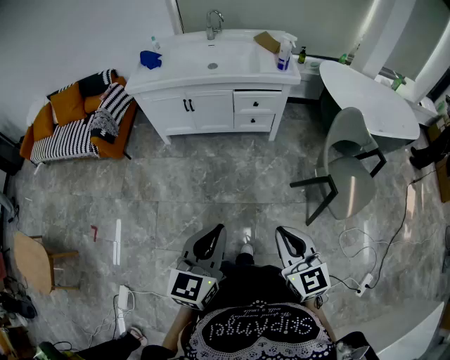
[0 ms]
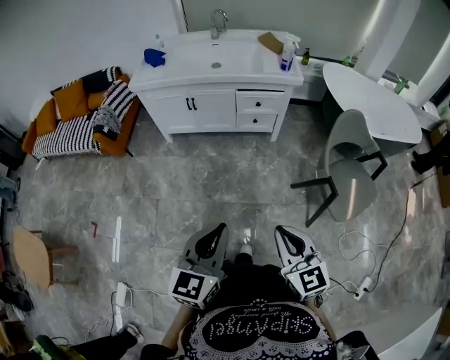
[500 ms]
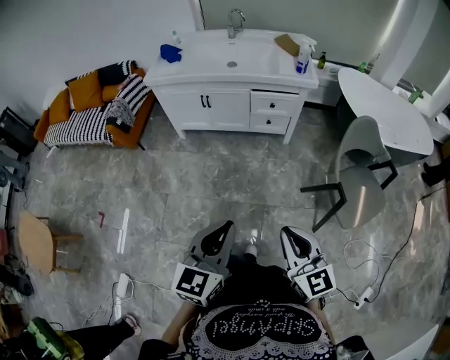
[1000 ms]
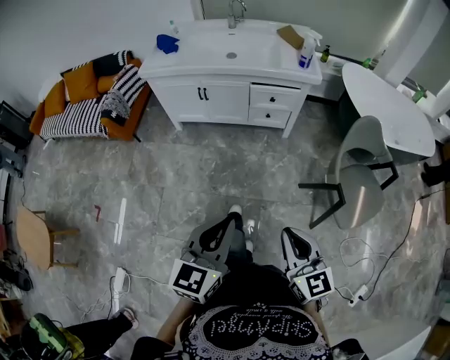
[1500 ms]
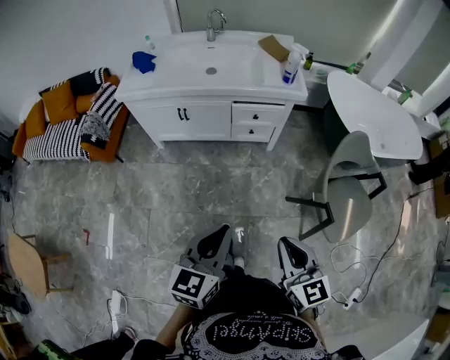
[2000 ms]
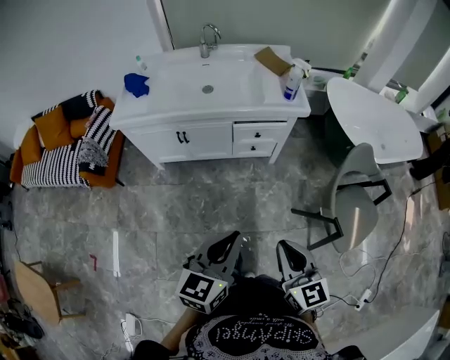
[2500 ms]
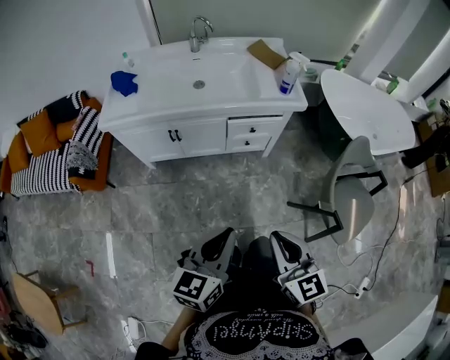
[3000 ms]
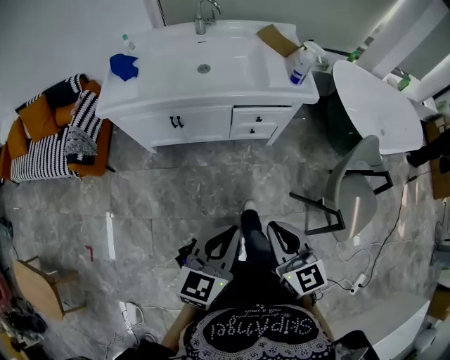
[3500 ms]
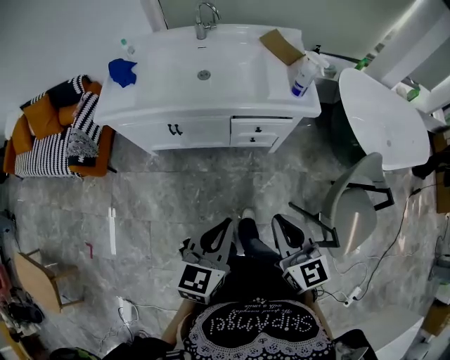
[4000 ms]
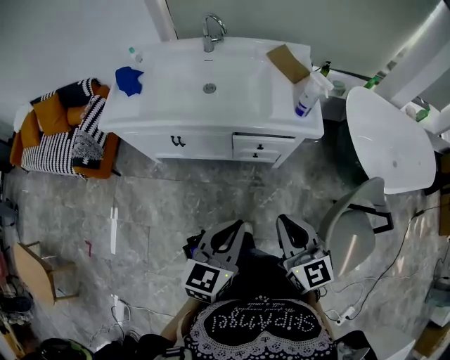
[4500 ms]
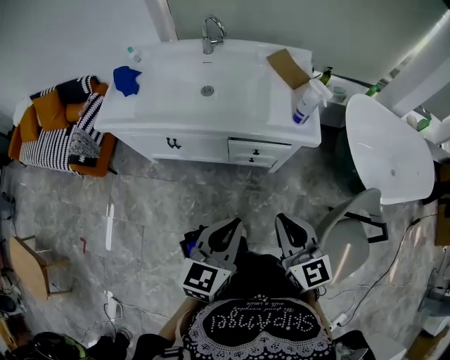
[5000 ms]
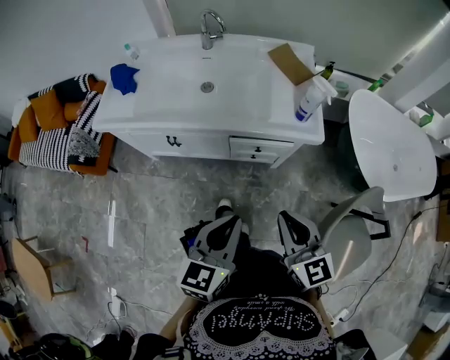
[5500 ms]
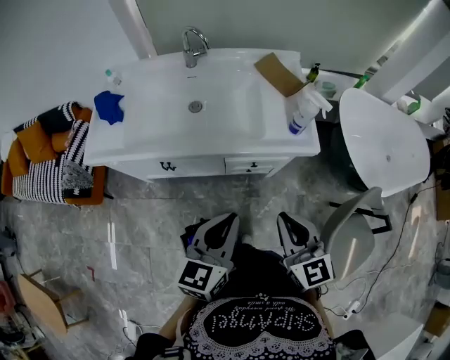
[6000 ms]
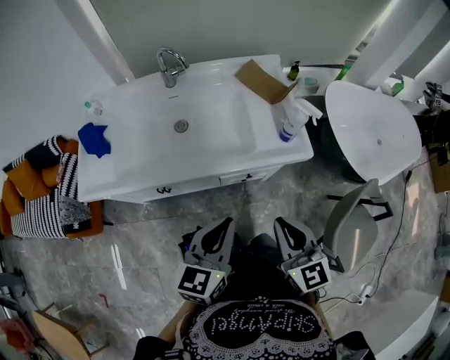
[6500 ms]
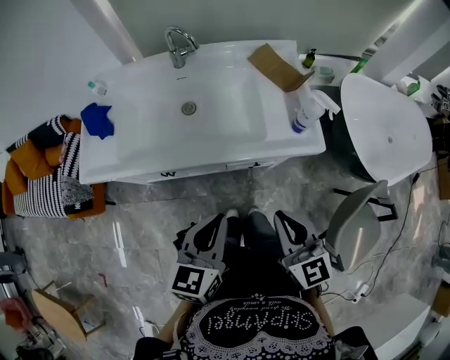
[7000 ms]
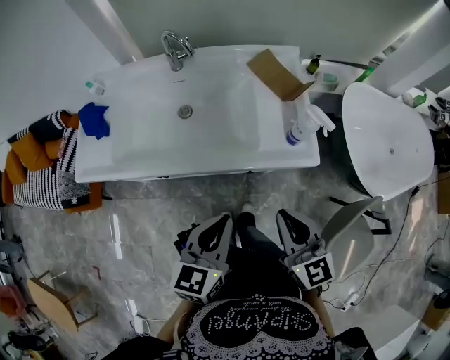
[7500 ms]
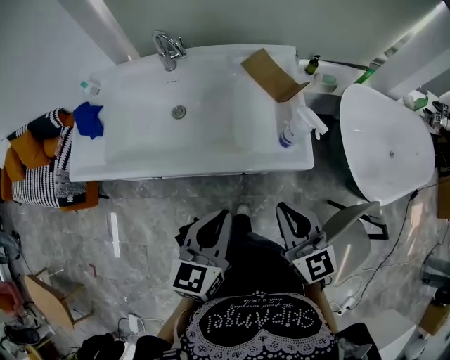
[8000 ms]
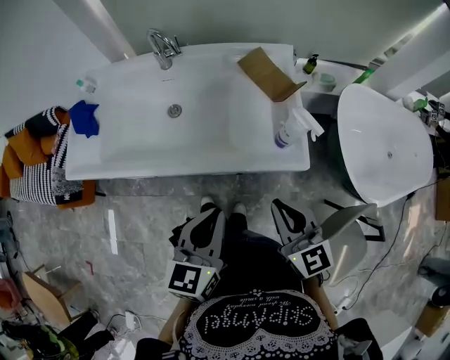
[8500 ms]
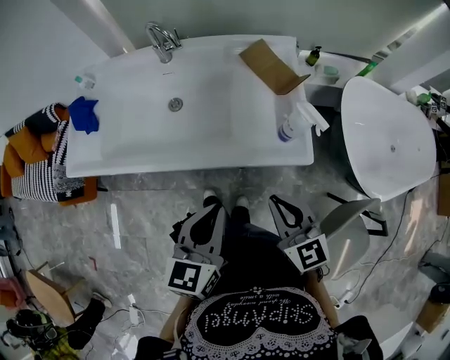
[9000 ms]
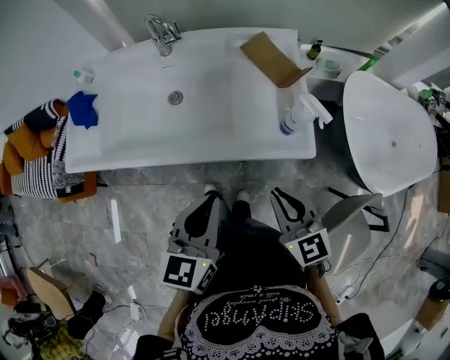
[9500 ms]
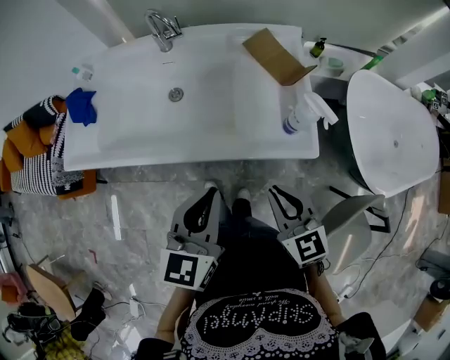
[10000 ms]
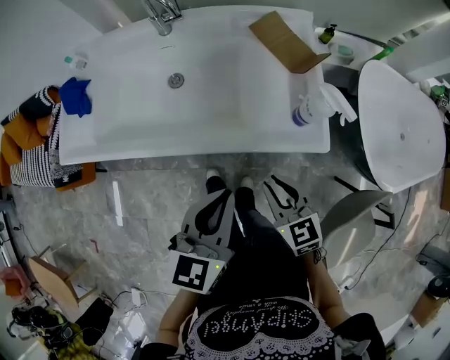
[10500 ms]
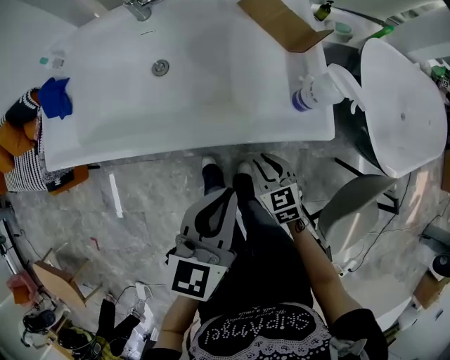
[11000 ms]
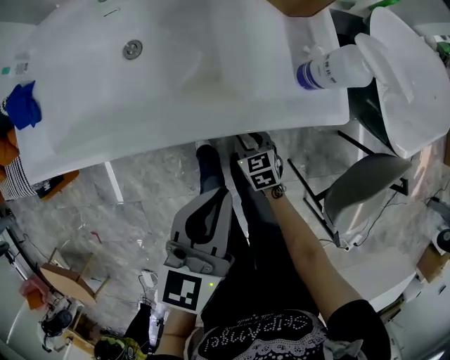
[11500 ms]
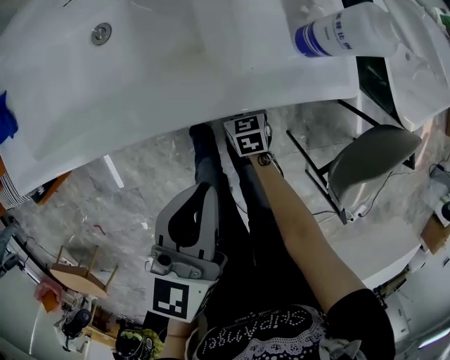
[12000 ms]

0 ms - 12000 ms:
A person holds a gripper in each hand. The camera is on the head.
0 ms - 2000 ms: Both grippers move forward, approximately 15 cm.
2000 ms - 4000 ms: The grippers both shift forward by about 25 cm.
4000 ms - 6000 ms: Both grippers travel together forward, some 20 cm.
6000 ms - 8000 ms: The grippers both shift forward by approximately 10 cm.
8000 ms - 10000 ms: The right gripper shifts some 5 cm downward.
10000 ms - 12000 ms: The right gripper travels downward by some 40 cm, rotates approximately 40 degrees, and opens its fingers; the left gripper moves downward, about 15 cm.

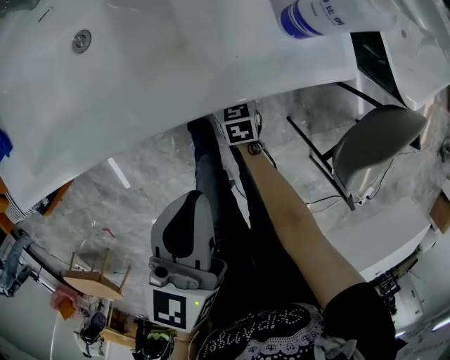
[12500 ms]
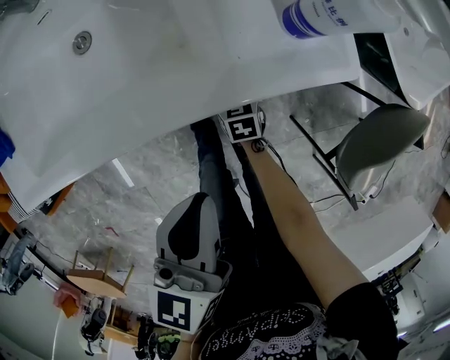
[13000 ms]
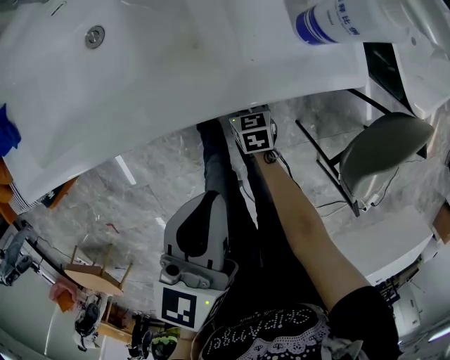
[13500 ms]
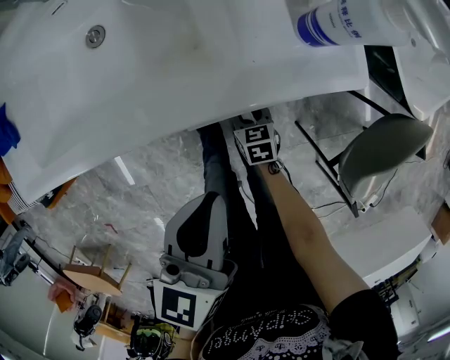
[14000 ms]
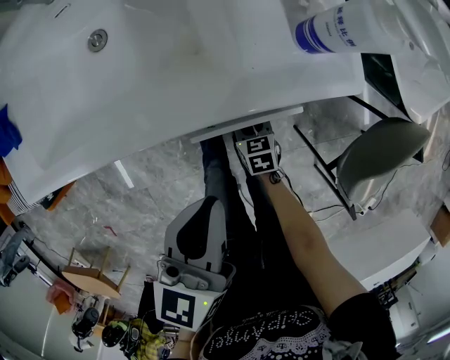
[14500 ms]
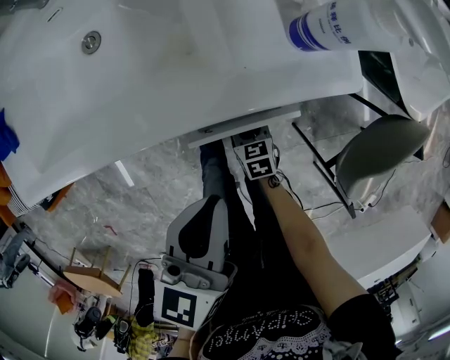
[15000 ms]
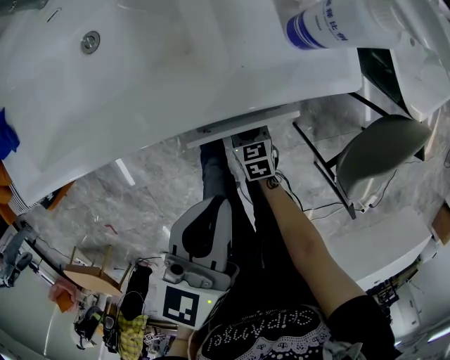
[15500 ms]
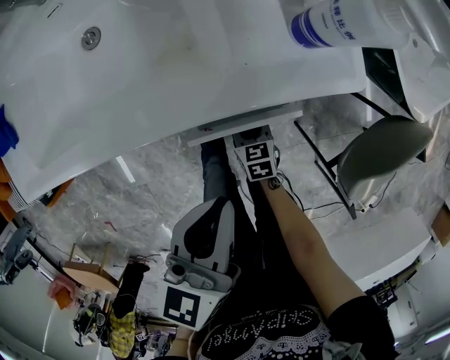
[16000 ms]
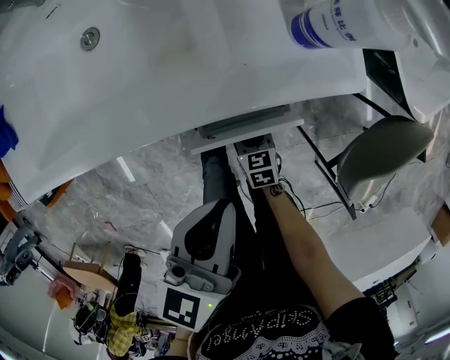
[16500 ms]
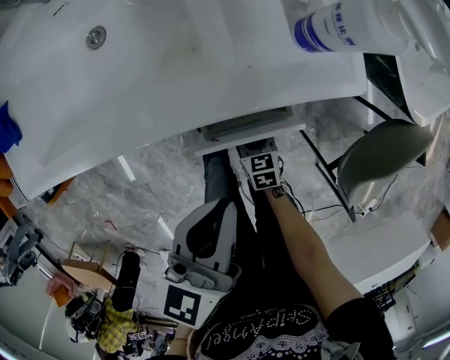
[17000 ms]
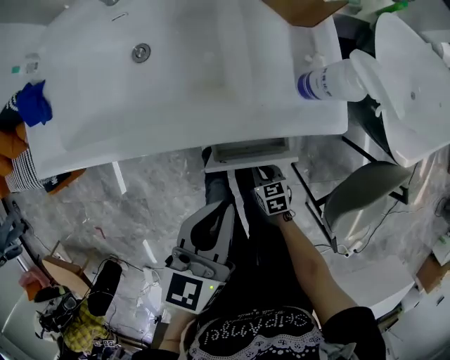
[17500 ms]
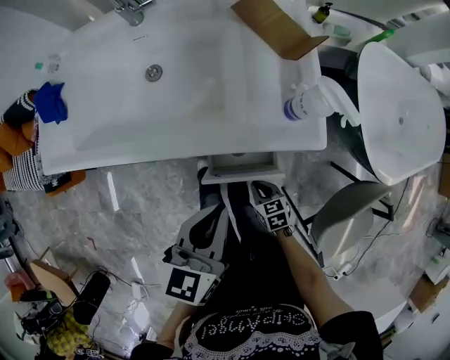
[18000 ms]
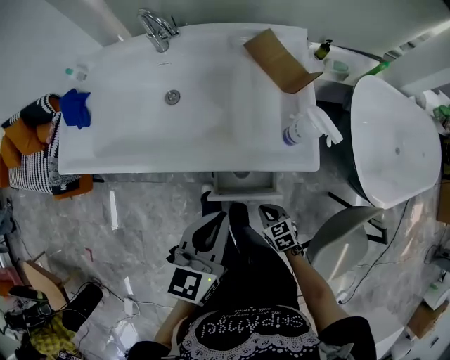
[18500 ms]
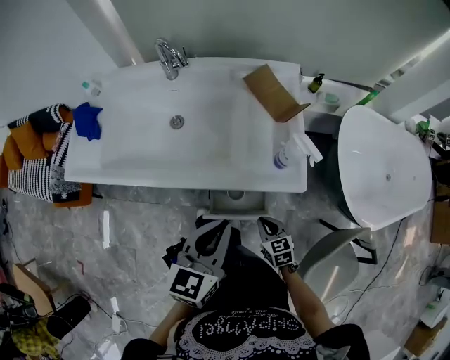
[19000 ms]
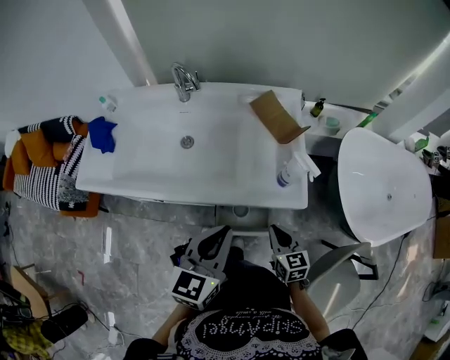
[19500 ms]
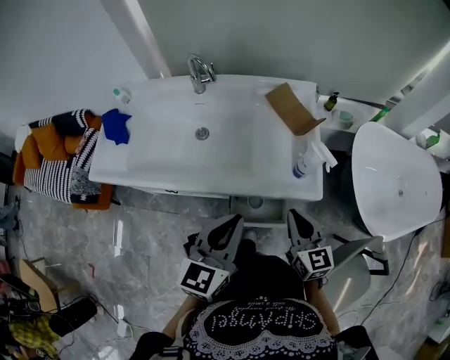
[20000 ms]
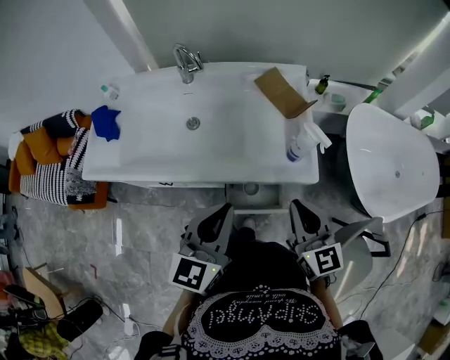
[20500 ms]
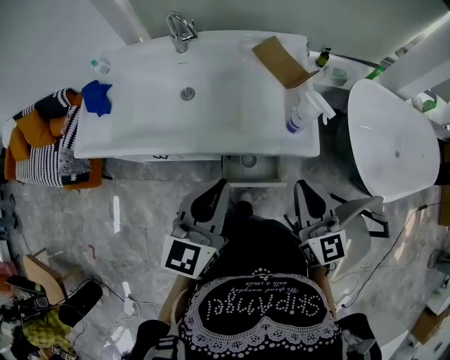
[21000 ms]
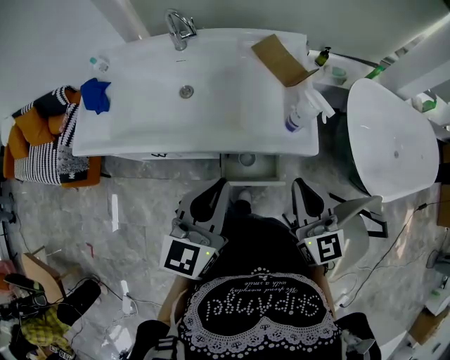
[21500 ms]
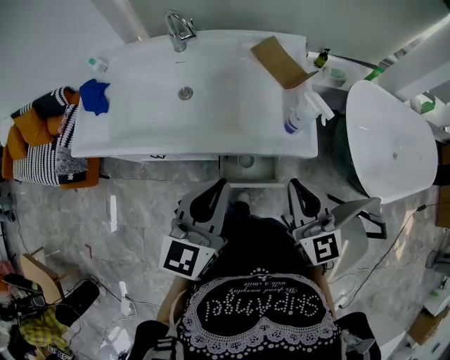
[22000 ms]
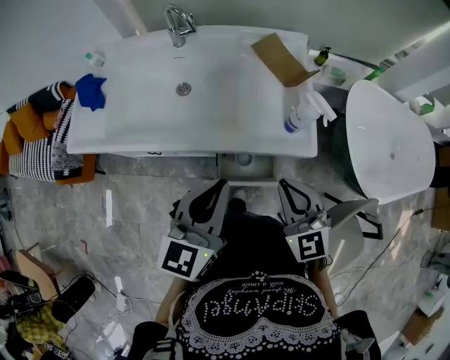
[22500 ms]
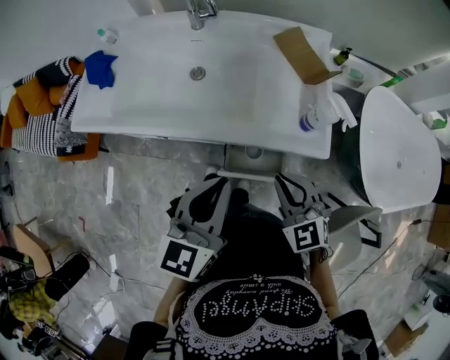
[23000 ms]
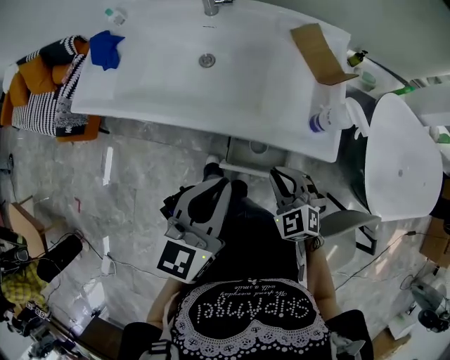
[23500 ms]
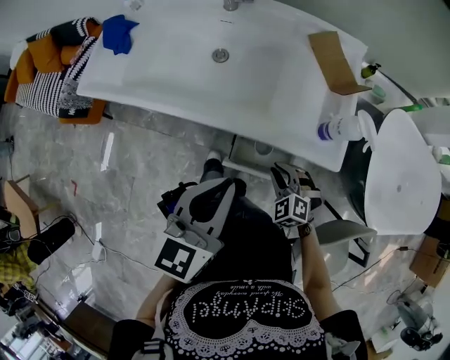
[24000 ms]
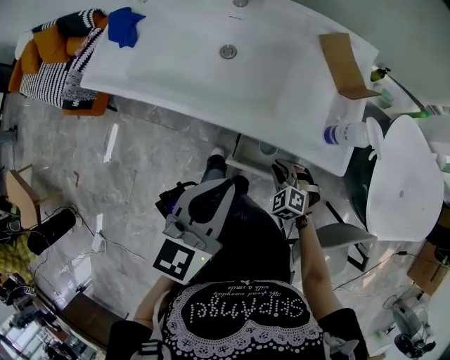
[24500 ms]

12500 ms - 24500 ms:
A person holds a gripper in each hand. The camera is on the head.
12500 ms - 14500 ms: The right gripper travels backward by roughly 10 cm.
14500 ms - 16500 ms: The grippers make only small movements.
16500 ms - 18500 ms: The left gripper travels upward by about 10 cm. The right gripper goes some 15 cm upward and to the right, swivels roughly 20 degrees, and closes its fingers.
18500 ms - 20500 ms: The left gripper shifts some 5 cm upward, while the right gripper travels upward by approximately 35 cm, and tilts its fingers approximately 40 degrees upward.
20500 ms - 22500 ms: The right gripper rotates approximately 30 degrees.
22500 ms - 24500 ms: The right gripper goes roughly 25 cm downward, and angles its fingers downward, by approximately 30 degrees.

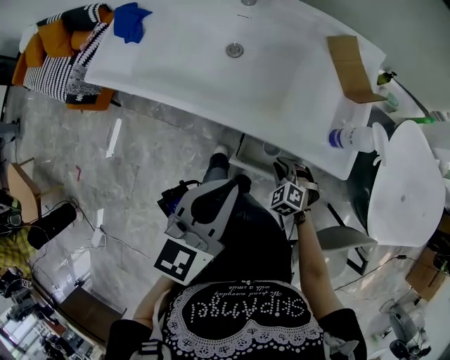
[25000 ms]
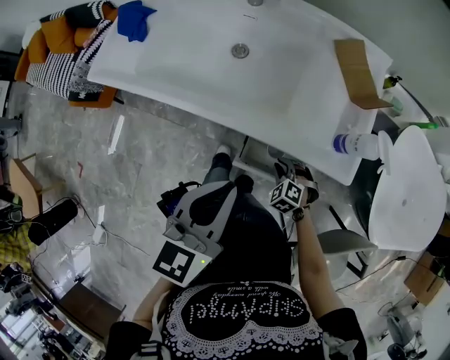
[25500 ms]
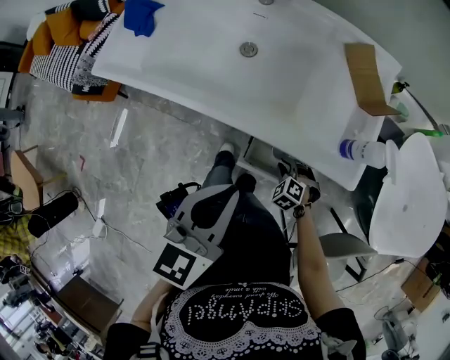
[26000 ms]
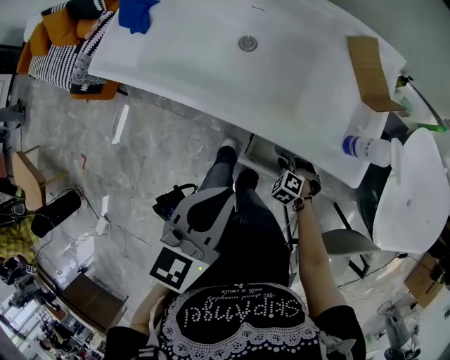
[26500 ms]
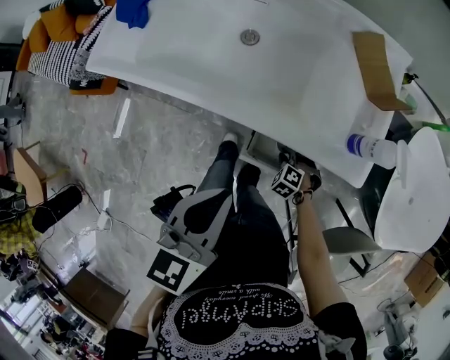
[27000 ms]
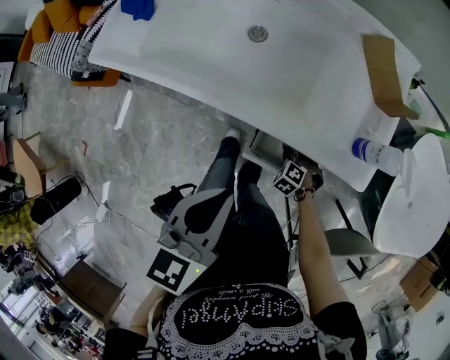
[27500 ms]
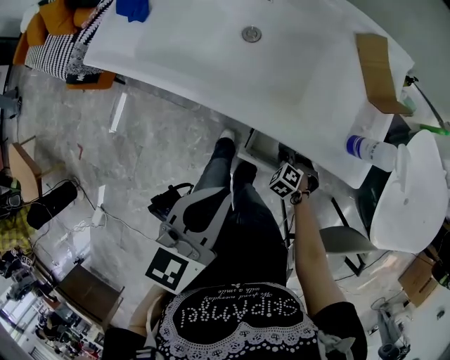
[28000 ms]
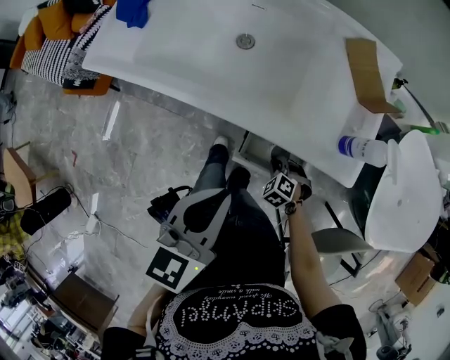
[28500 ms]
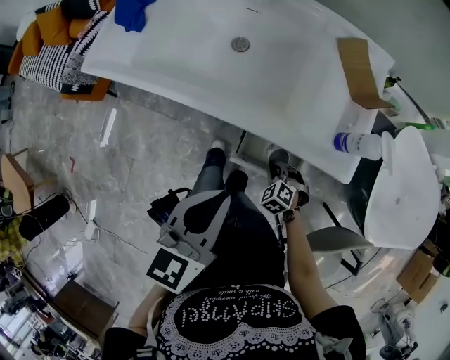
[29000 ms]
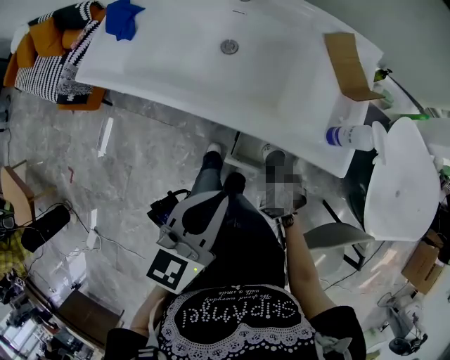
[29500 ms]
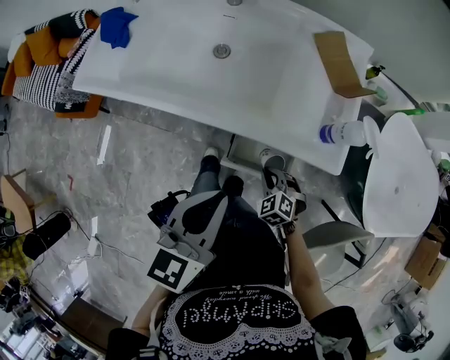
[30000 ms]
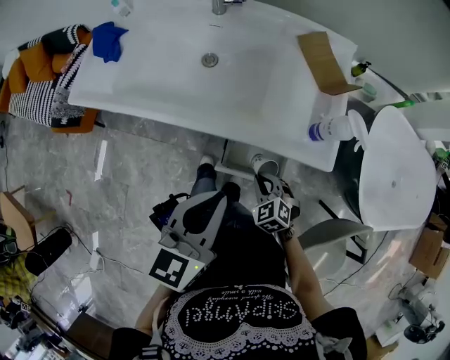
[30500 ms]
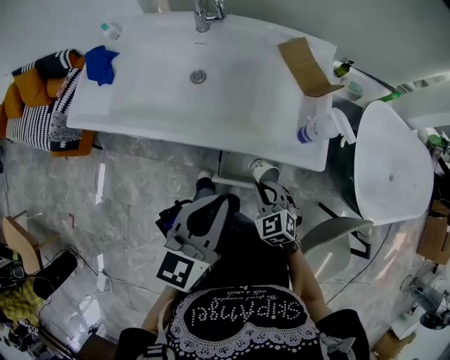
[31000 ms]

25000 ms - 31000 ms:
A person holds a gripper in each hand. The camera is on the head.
25000 ms - 27000 ms: The right gripper moves downward, approximately 10 cm.
27000 ms - 29000 ms: The right gripper moves upward, some 5 cm.
29000 ms - 31000 ms: The right gripper is displaced upward by approximately 15 cm, and swivels some 30 degrees.
